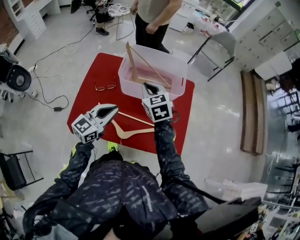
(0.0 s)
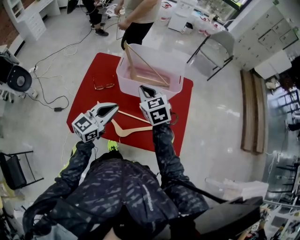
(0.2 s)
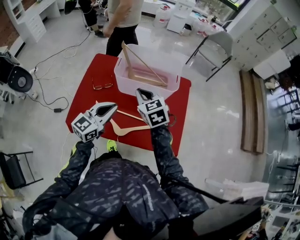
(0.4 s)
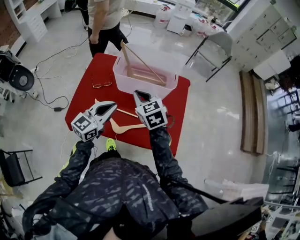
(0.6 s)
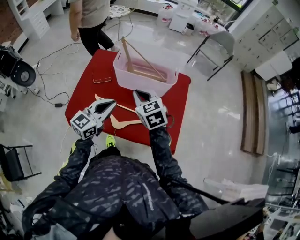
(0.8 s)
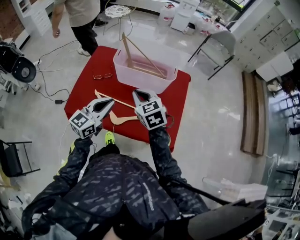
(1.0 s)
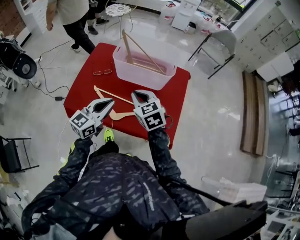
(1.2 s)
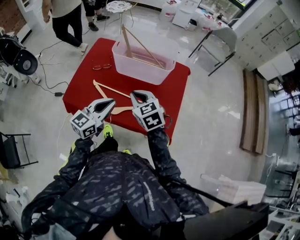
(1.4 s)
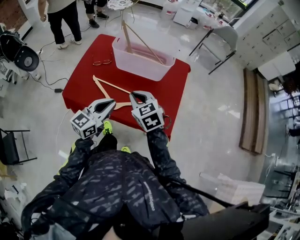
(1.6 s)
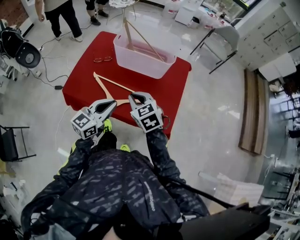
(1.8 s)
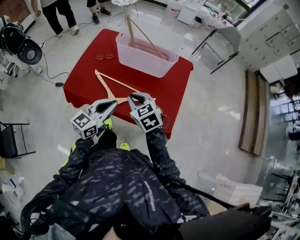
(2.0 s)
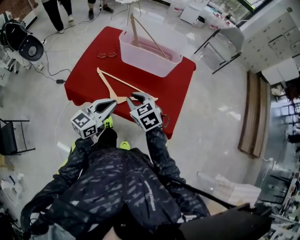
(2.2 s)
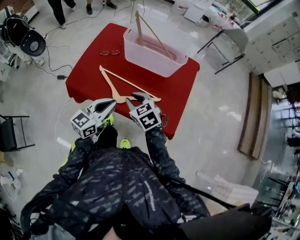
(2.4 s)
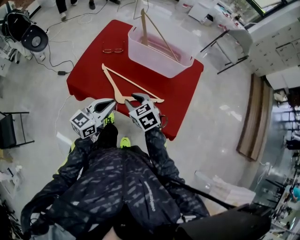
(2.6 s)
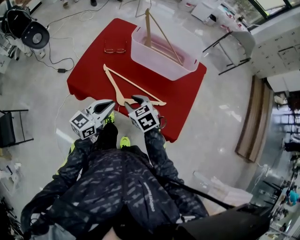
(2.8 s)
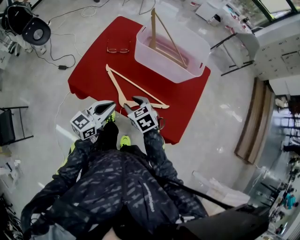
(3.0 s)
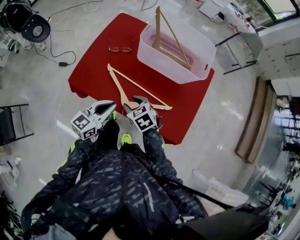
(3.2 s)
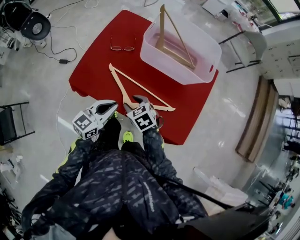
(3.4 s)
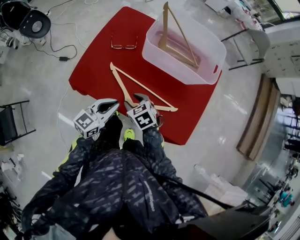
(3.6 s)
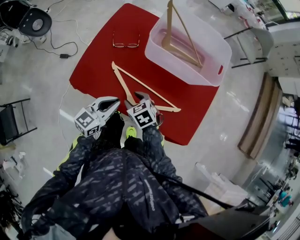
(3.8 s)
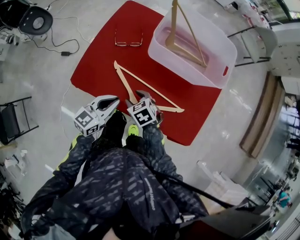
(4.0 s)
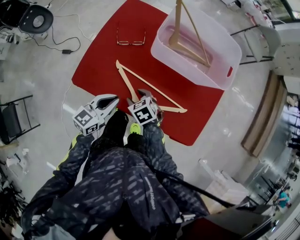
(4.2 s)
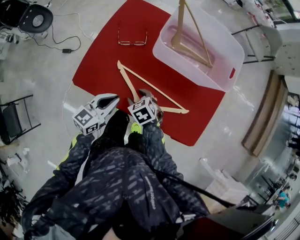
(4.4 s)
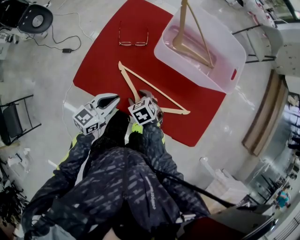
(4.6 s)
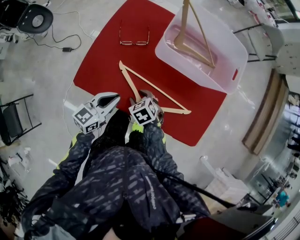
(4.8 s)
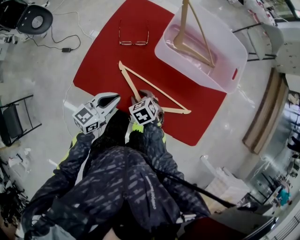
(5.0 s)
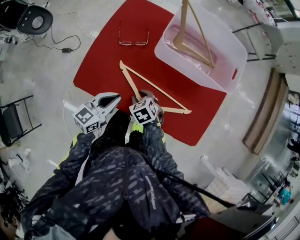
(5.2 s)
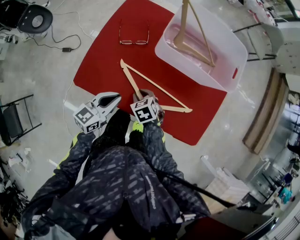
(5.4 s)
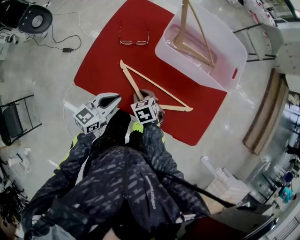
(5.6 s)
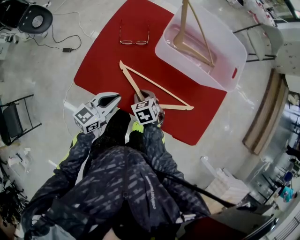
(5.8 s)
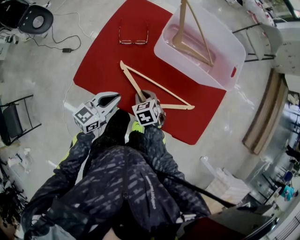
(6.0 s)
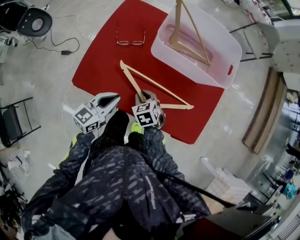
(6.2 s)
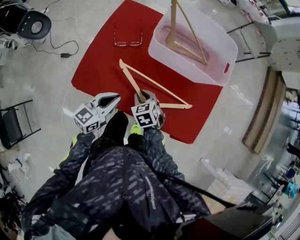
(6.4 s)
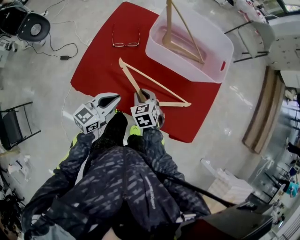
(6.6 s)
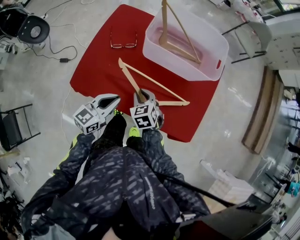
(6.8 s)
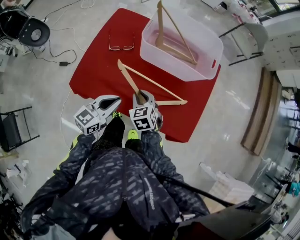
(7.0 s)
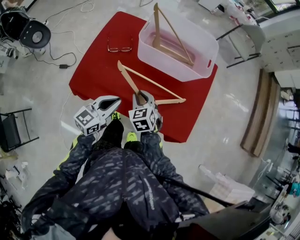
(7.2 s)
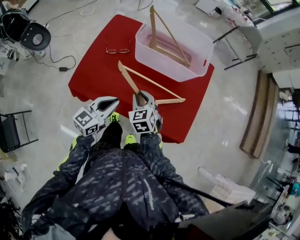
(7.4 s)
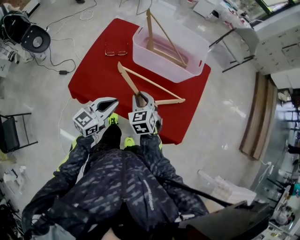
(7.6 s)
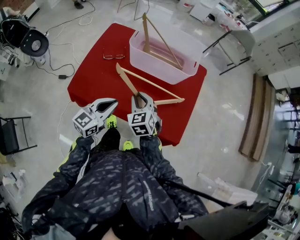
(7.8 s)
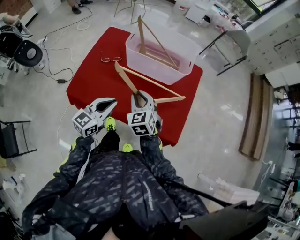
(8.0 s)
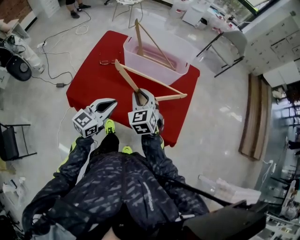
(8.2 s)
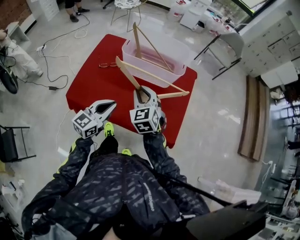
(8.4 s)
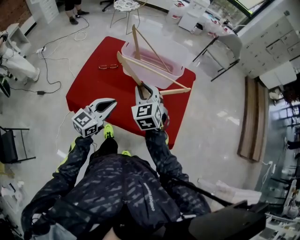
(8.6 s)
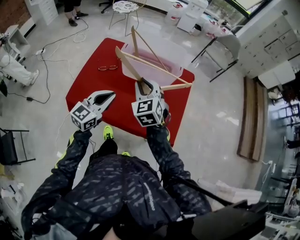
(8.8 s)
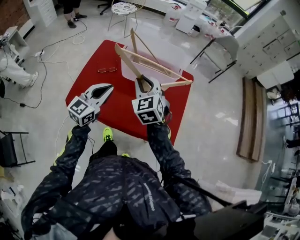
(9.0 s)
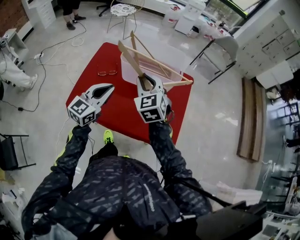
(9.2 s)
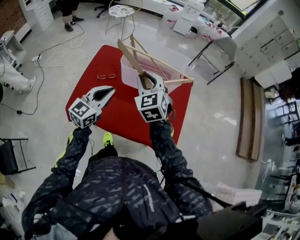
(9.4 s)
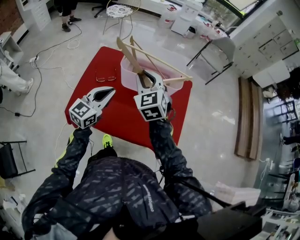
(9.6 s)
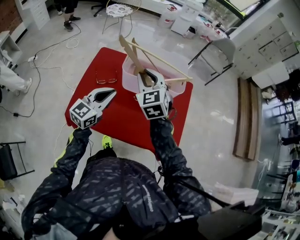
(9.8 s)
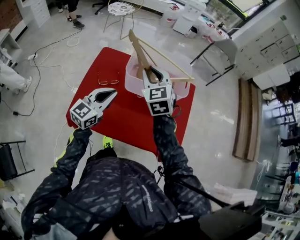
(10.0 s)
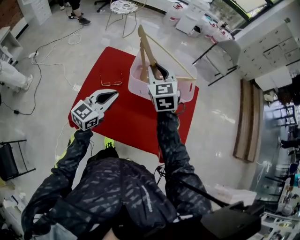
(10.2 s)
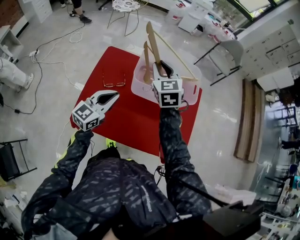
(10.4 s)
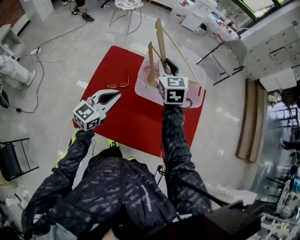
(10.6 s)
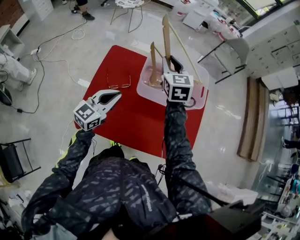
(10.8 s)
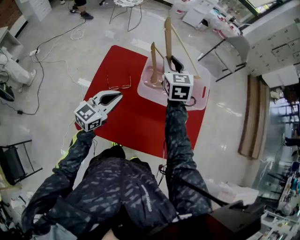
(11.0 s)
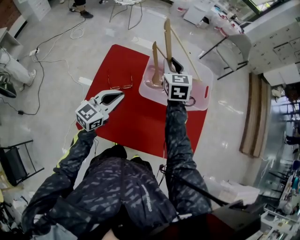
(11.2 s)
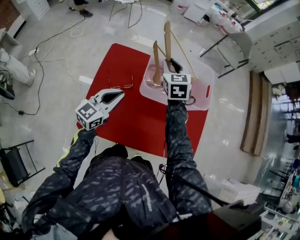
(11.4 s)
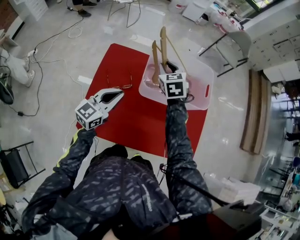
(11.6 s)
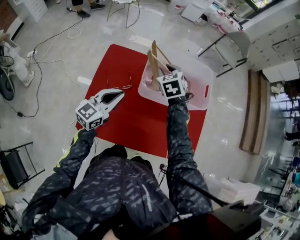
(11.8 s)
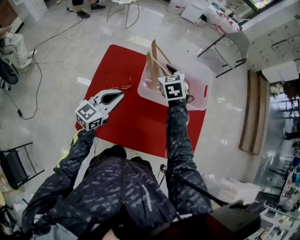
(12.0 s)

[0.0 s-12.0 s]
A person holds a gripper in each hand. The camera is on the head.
0.0 to 1.6 s: The right gripper is displaced backward by roughly 20 cm; the left gripper shifts roughly 20 cm backward and to the right.
1.6 to 3.0 s: The left gripper shifts roughly 10 cm to the left and downward; the right gripper goes approximately 15 cm downward and to the left, rotates approximately 20 degrees, and opens its fingers.
3.0 to 4.4 s: The left gripper heads forward, downward and to the left, covering approximately 15 cm, while the right gripper goes some 15 cm downward, forward and to the left.
4.4 to 6.0 s: The right gripper closes up.
6.0 to 7.6 s: The right gripper is displaced upward and to the right by some 15 cm, and swivels about 30 degrees. Meanwhile the left gripper goes about 15 cm to the right and upward.
7.6 to 9.0 s: The right gripper heads upward, covering some 20 cm, while the left gripper shifts about 15 cm upward.
9.0 to 10.4 s: Both grippers travel together forward and to the left, about 20 cm.
10.4 to 12.0 s: The right gripper travels downward and forward by approximately 15 cm. The left gripper heads forward, covering some 5 cm.

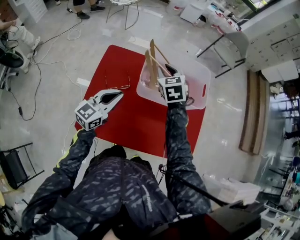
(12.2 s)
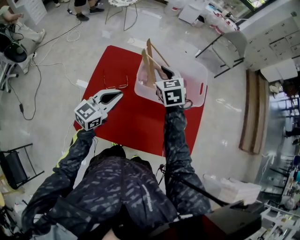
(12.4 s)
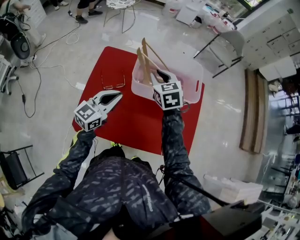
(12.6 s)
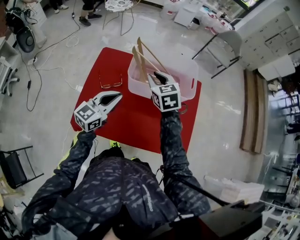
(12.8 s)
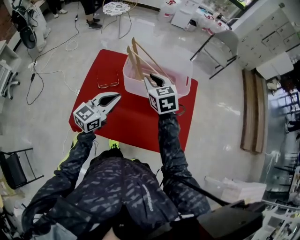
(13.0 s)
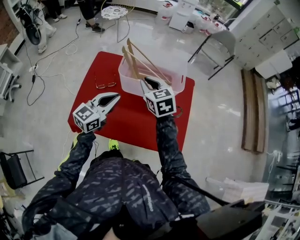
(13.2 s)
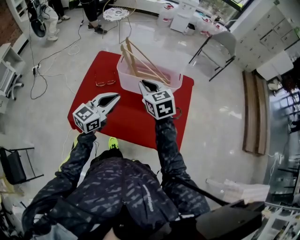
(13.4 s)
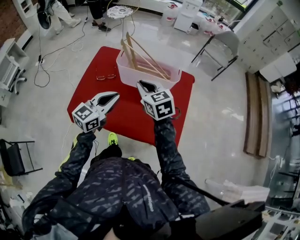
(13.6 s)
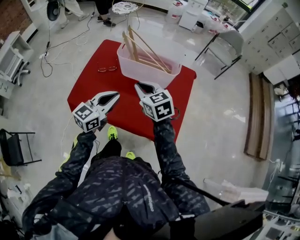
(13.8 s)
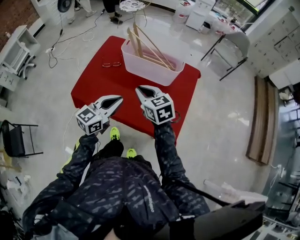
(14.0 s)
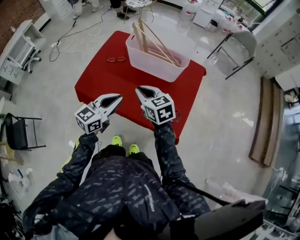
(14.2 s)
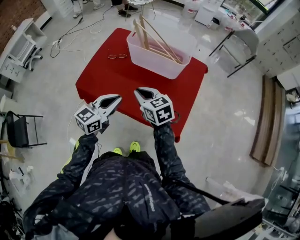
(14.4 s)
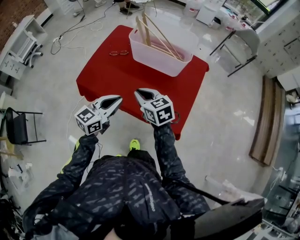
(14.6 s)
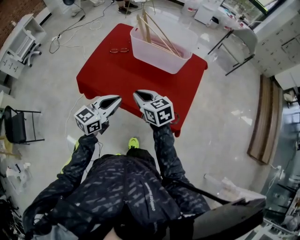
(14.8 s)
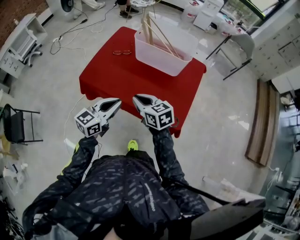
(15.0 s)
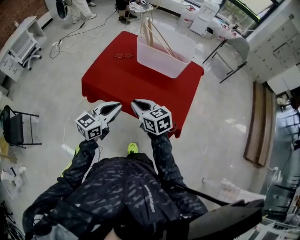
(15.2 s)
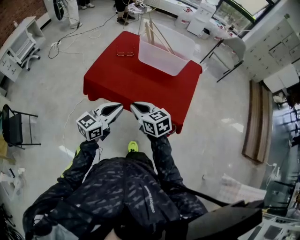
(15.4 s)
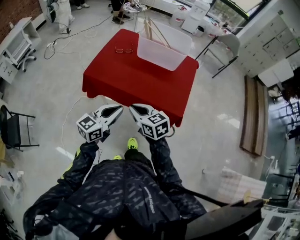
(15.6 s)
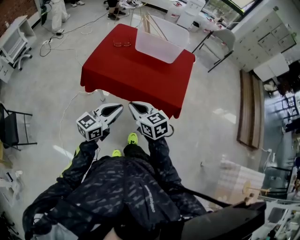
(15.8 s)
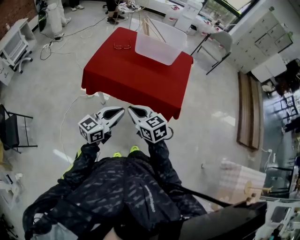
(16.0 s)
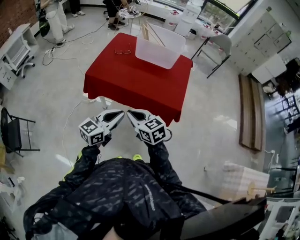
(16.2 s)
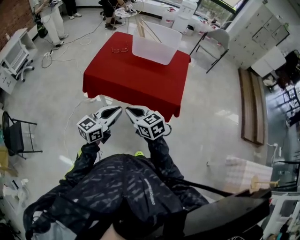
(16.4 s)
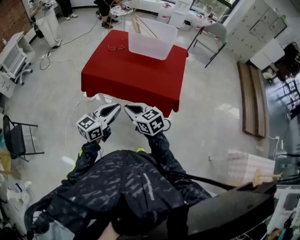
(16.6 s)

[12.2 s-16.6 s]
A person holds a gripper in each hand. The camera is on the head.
12.2 to 13.6 s: The right gripper moves backward and to the right, roughly 25 cm, and swivels approximately 20 degrees, while the left gripper travels to the right and backward by roughly 25 cm.
13.6 to 15.2 s: Both grippers move backward, about 25 cm. The right gripper rotates roughly 20 degrees.
15.2 to 16.6 s: The grippers both shift backward by approximately 20 cm.

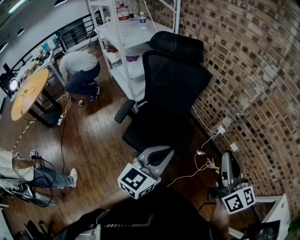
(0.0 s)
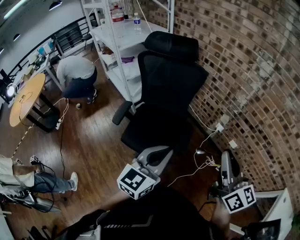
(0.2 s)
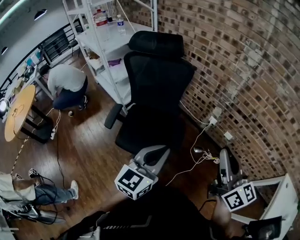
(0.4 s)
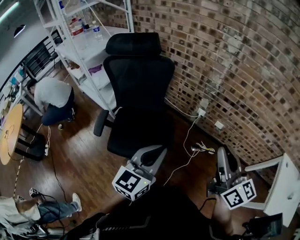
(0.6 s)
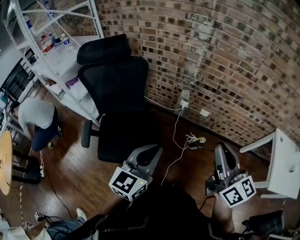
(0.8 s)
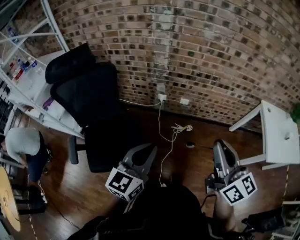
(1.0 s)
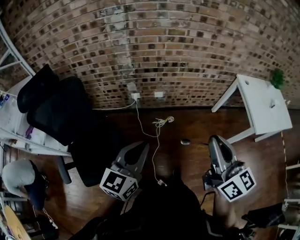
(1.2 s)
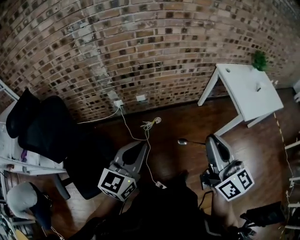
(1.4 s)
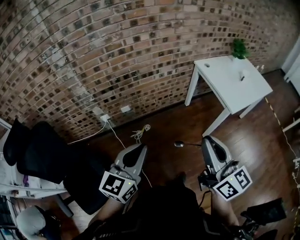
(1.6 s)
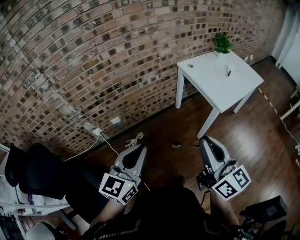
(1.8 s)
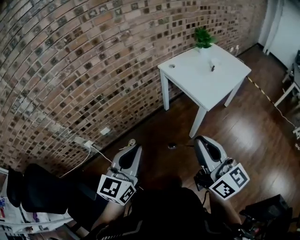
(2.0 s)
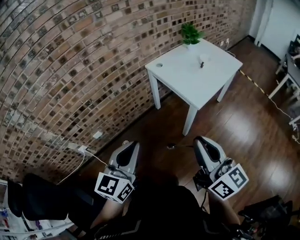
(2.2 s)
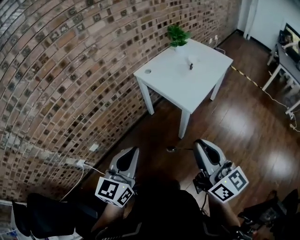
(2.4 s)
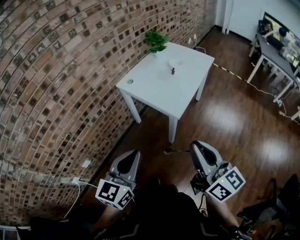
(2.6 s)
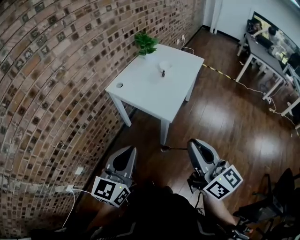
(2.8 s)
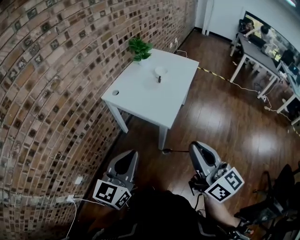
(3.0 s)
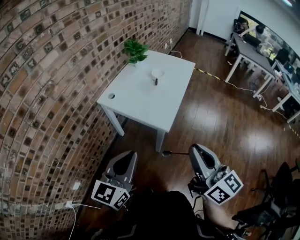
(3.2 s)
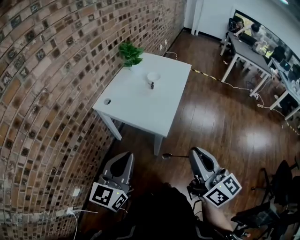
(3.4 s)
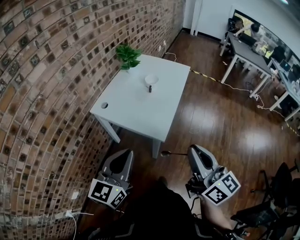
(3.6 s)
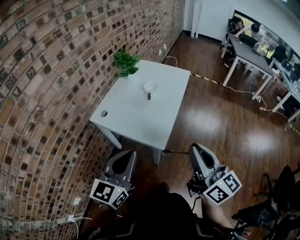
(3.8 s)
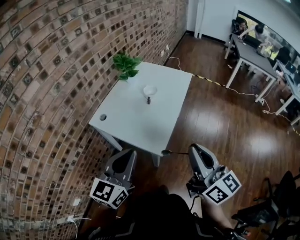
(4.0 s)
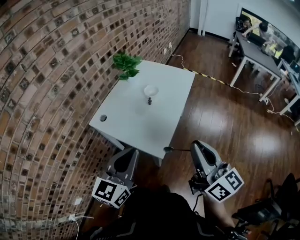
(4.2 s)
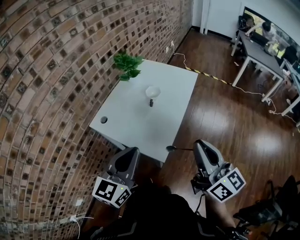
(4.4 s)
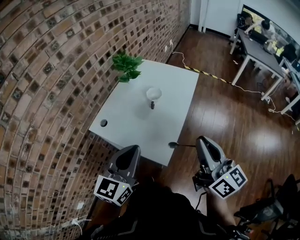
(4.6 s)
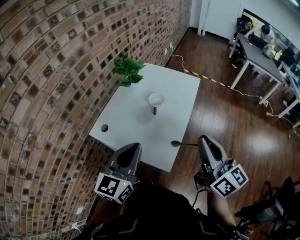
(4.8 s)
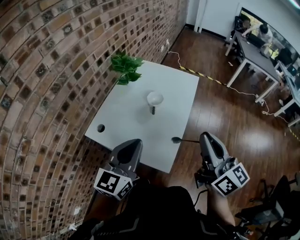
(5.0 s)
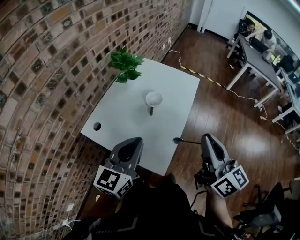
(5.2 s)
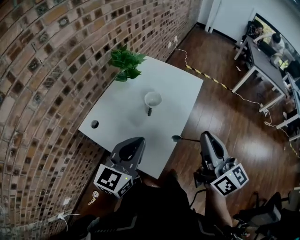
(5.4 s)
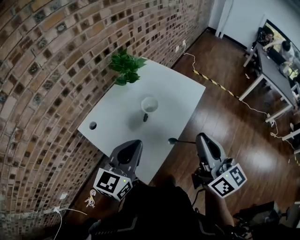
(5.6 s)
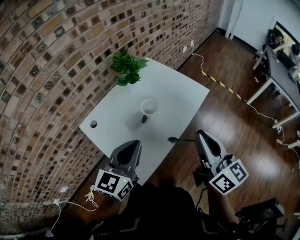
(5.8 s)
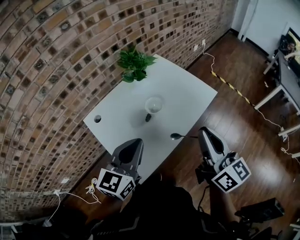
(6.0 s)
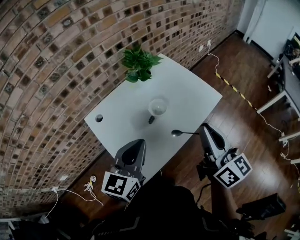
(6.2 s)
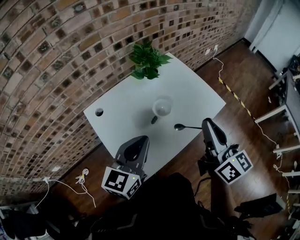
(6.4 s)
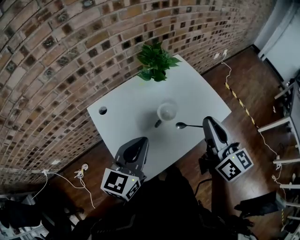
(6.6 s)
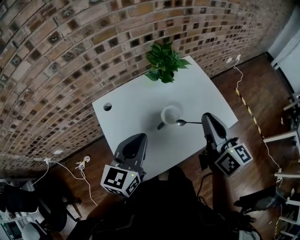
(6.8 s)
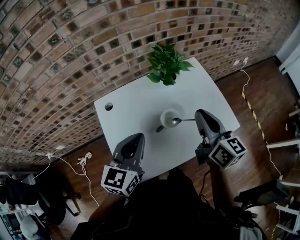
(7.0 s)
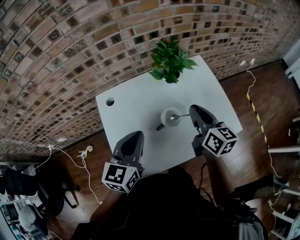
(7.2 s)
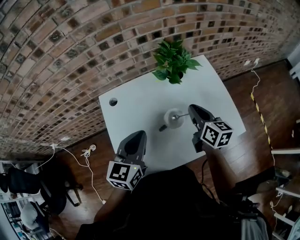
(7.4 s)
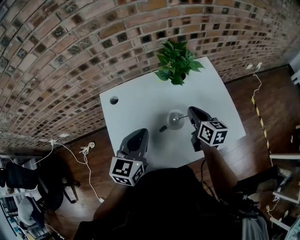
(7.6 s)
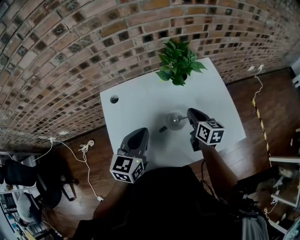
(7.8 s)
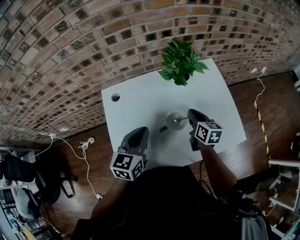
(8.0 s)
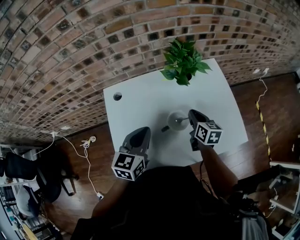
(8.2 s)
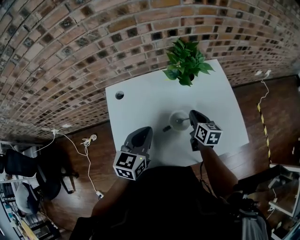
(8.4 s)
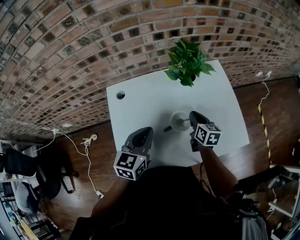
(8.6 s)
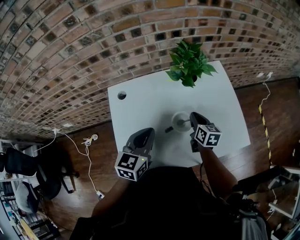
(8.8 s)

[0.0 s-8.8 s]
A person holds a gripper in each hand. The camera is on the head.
0.0 to 1.4 s: The right gripper changes place by roughly 30 cm, and rotates some 50 degrees, while the left gripper ends up about 25 cm from where it was, and changes its angle by approximately 50 degrees.
1.4 to 3.0 s: The right gripper moves about 35 cm, and turns by some 40 degrees. Meanwhile the left gripper ends up approximately 50 cm from where it was, and rotates approximately 50 degrees.
3.0 to 4.4 s: The grippers both shift forward by some 20 cm.
4.4 to 5.8 s: The right gripper travels forward by about 25 cm; the left gripper shifts approximately 20 cm forward and to the right.
5.8 to 7.4 s: The right gripper moves some 35 cm, and changes its angle by approximately 40 degrees, while the left gripper moves some 15 cm, and rotates roughly 40 degrees.
7.4 to 8.8 s: The left gripper goes approximately 5 cm downward. The right gripper travels downward by about 15 cm.
